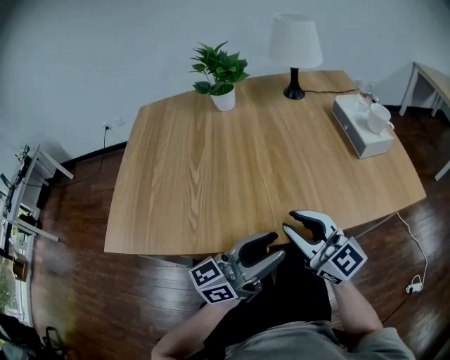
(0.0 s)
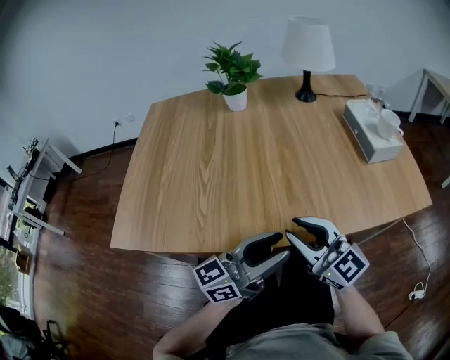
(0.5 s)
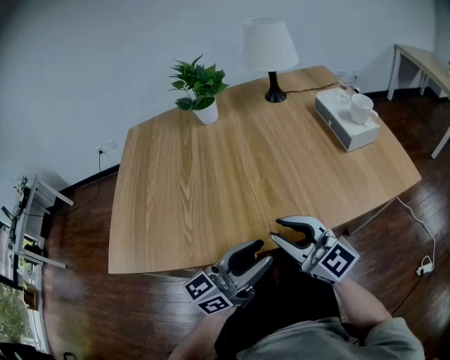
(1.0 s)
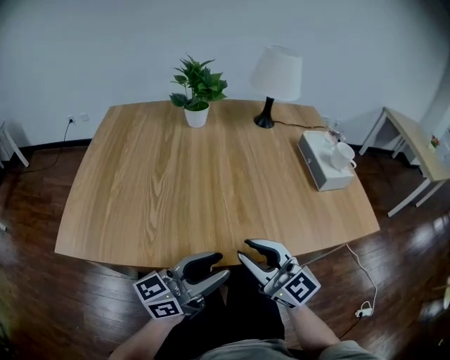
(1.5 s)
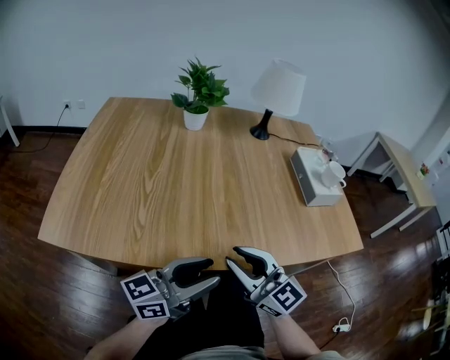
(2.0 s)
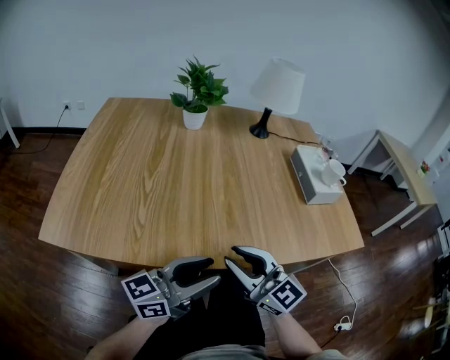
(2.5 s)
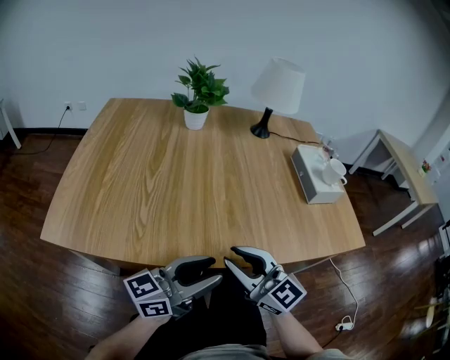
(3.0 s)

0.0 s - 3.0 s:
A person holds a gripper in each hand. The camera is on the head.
0.0 s - 3.0 s: There are only small adjustments of the grippers.

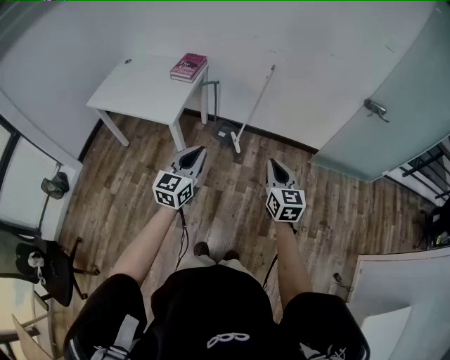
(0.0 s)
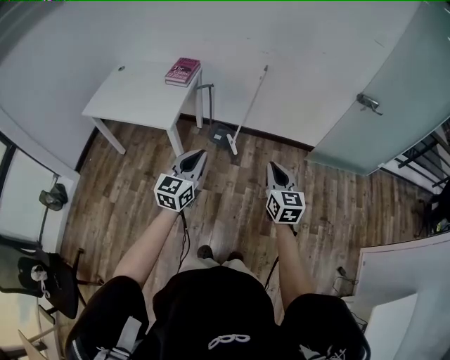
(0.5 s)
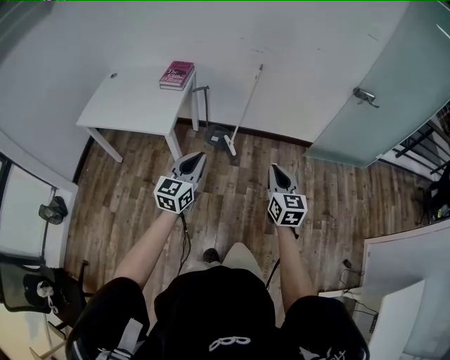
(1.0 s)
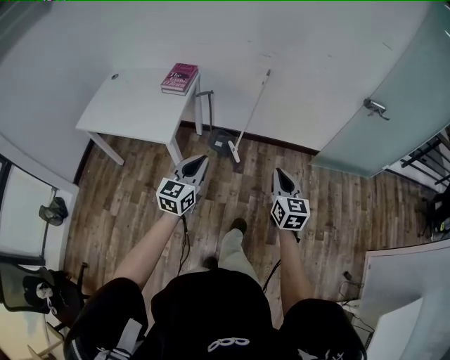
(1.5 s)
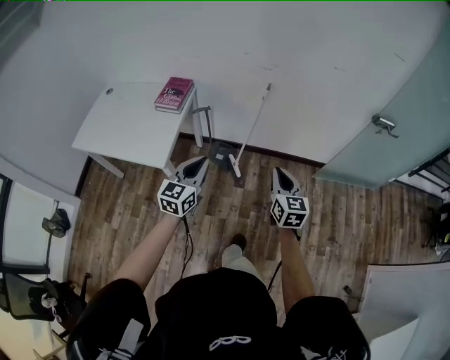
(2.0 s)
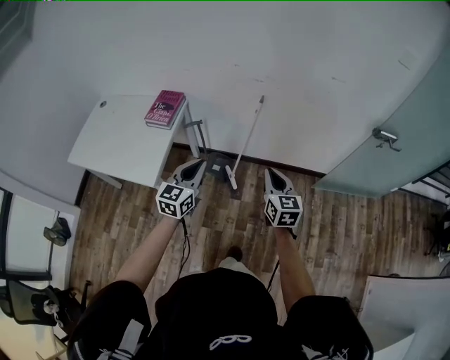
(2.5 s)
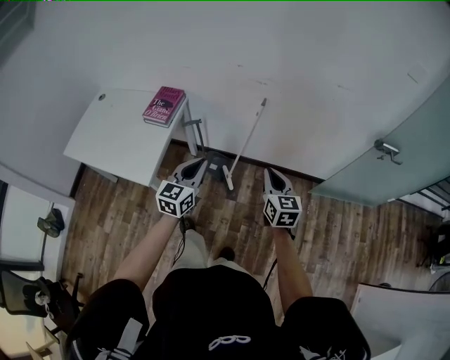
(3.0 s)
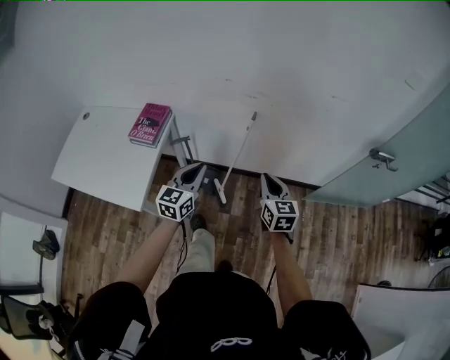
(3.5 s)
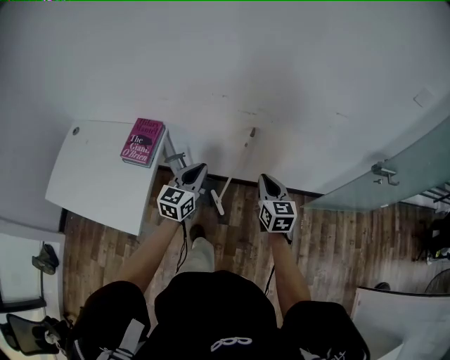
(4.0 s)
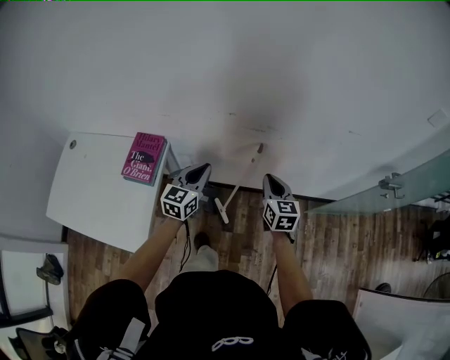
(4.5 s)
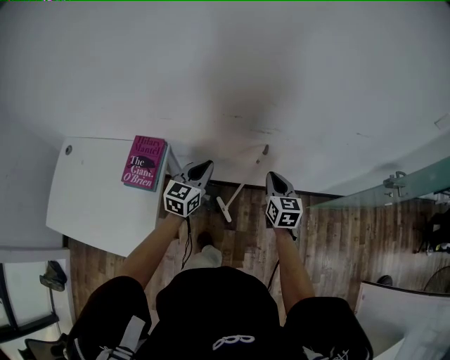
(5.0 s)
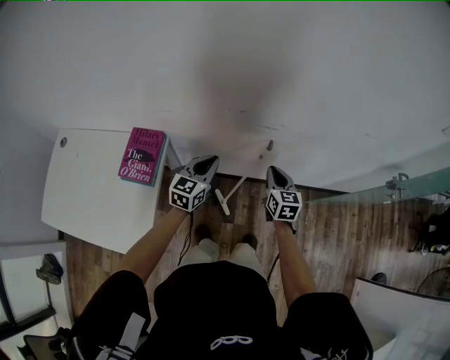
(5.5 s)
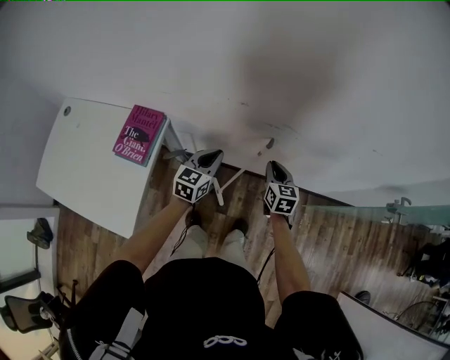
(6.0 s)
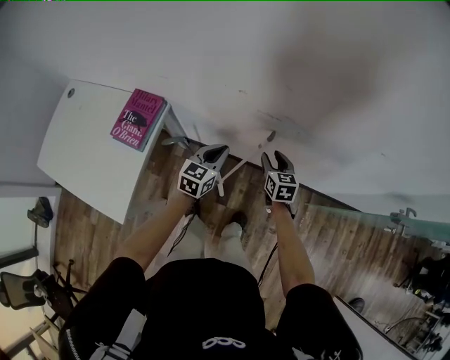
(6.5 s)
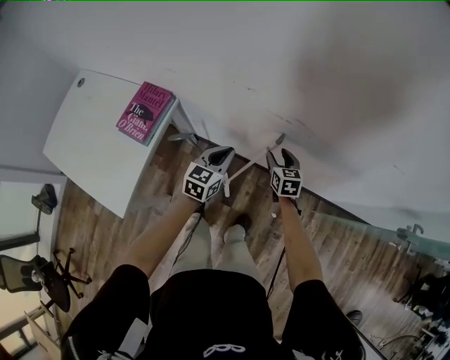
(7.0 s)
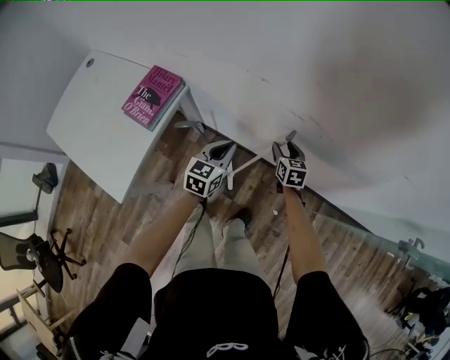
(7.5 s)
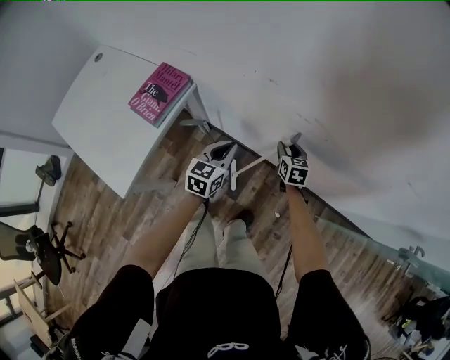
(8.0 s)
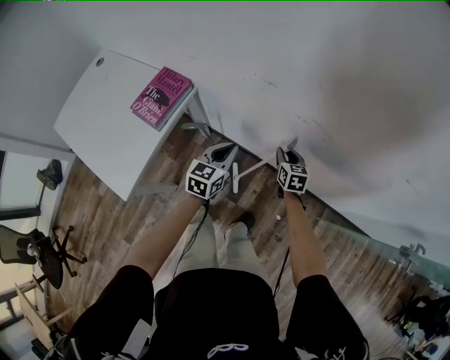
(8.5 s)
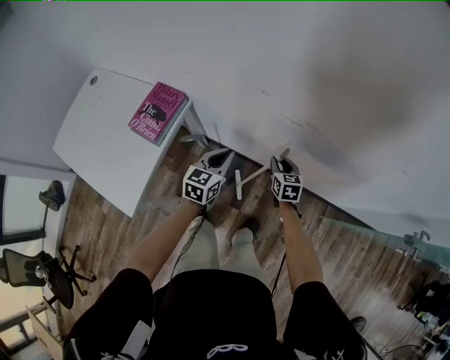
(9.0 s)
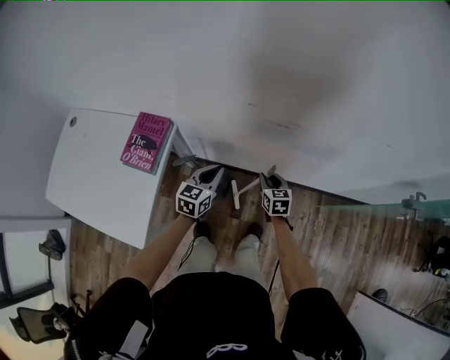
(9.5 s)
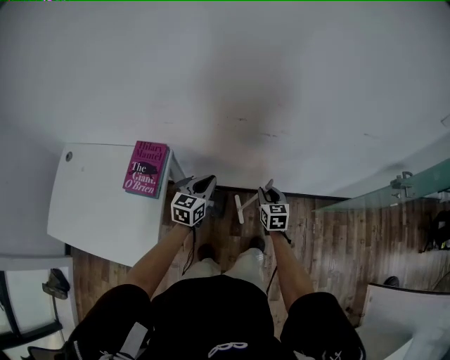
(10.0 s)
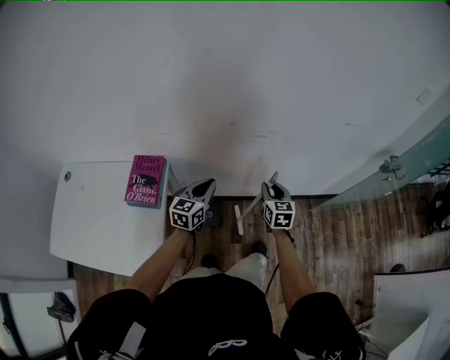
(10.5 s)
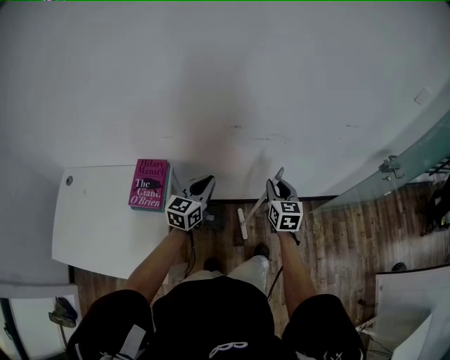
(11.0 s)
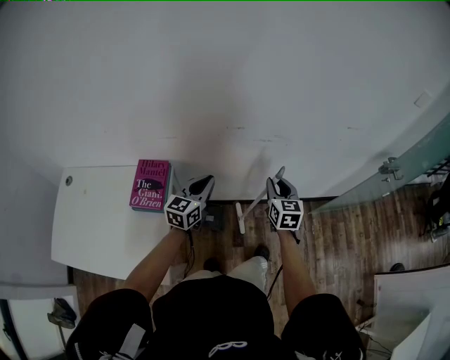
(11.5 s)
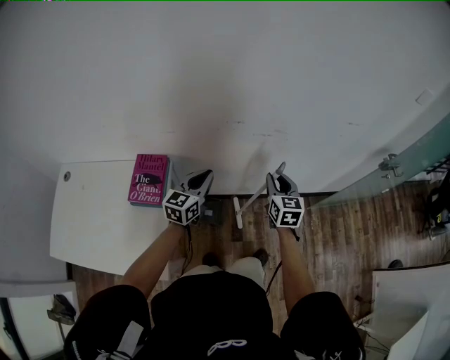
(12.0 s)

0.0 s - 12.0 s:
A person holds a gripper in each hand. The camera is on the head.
0.0 s - 2.0 s: The two grippers go about 20 cm forward.
2.0 s - 4.0 s: The two grippers go about 35 cm forward.
4.0 s - 6.0 s: Both grippers travel together forward and downward, roughly 20 cm.
6.0 s - 8.0 s: The left gripper heads downward, covering about 5 cm, while the right gripper moves downward and forward, approximately 15 cm, and opens up.
8.0 s - 10.0 s: The left gripper travels to the left and upward by some 10 cm, and turns by some 20 degrees, while the right gripper is displaced backward and upward by roughly 20 cm, and changes its angle by approximately 20 degrees.
10.0 s - 12.0 s: The right gripper travels upward by about 15 cm, while the left gripper moves upward, about 10 cm.

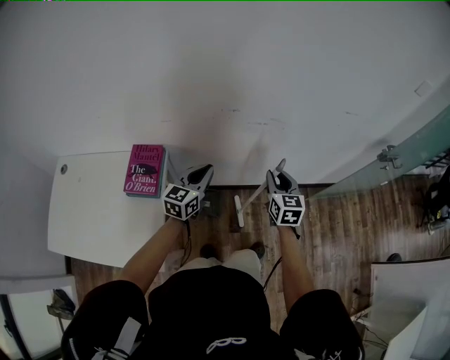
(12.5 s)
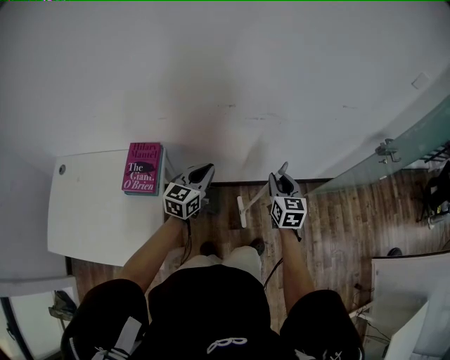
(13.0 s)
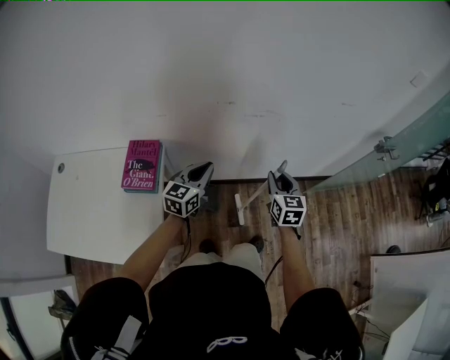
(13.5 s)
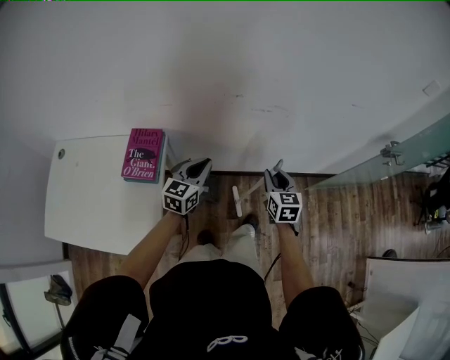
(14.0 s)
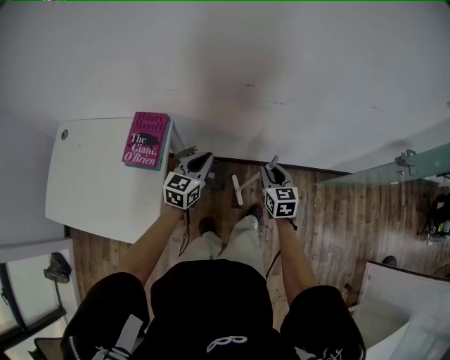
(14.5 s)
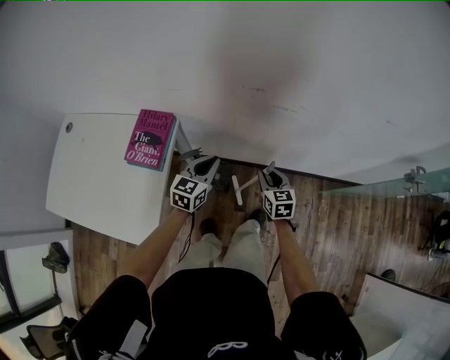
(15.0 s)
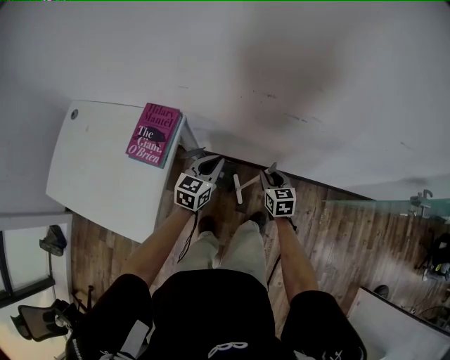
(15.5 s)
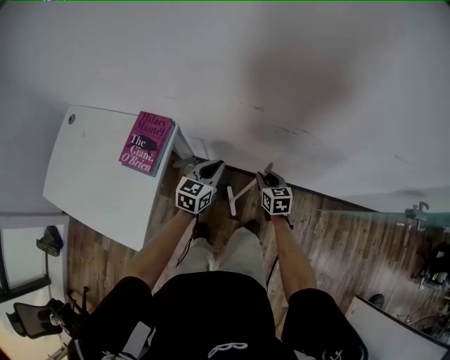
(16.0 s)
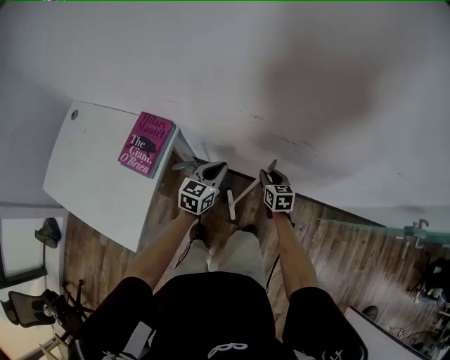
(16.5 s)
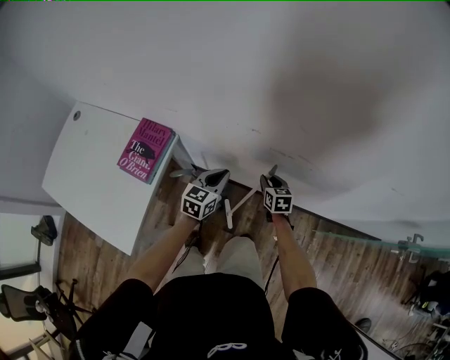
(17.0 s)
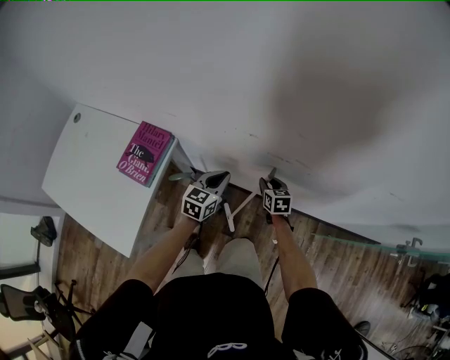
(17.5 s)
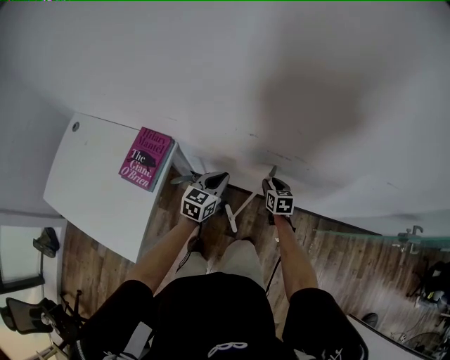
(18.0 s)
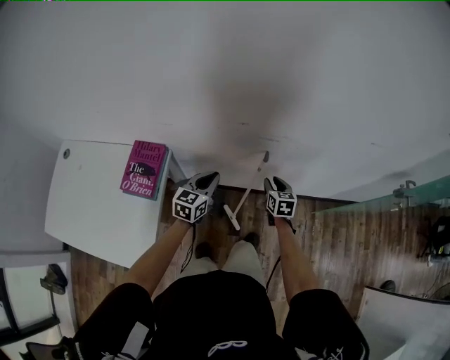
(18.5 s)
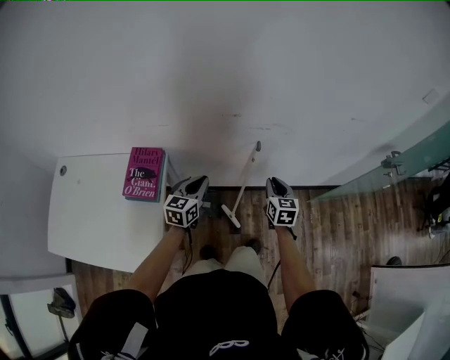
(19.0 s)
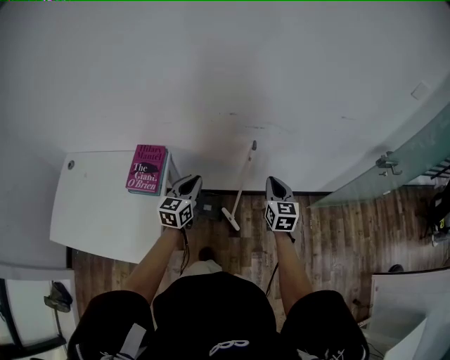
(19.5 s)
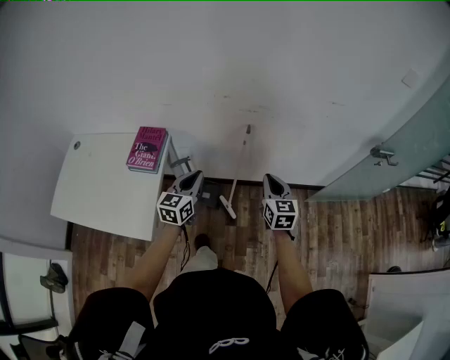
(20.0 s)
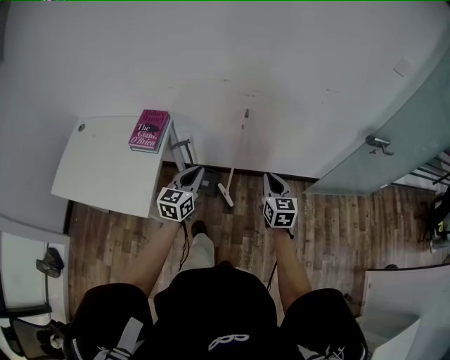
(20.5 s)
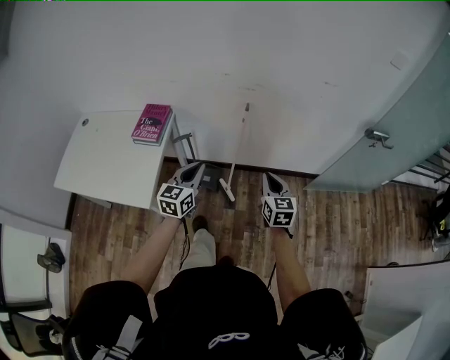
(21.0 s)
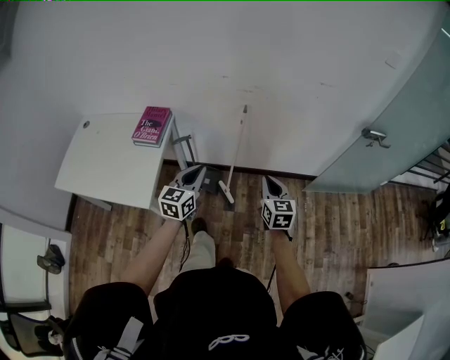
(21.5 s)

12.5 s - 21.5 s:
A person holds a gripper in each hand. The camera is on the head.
12.5 s - 14.5 s: The two grippers go approximately 10 cm downward.
14.5 s - 17.0 s: The right gripper travels forward and downward by about 25 cm, while the left gripper shifts roughly 15 cm forward, downward and to the right.
17.0 s - 19.5 s: The right gripper shifts some 30 cm upward and backward, changes its angle by roughly 30 degrees, and closes its fingers; the left gripper goes some 20 cm backward, upward and to the left.
19.5 s - 21.5 s: The right gripper travels backward by about 25 cm. The left gripper heads backward and to the right, covering roughly 25 cm.

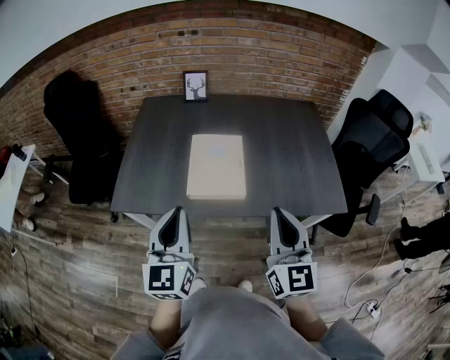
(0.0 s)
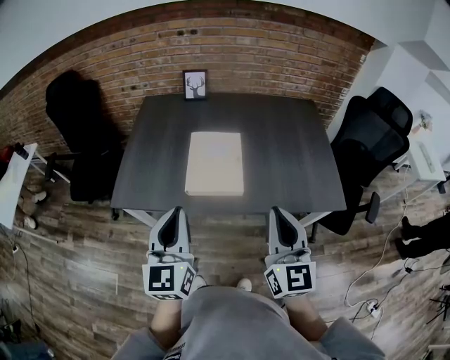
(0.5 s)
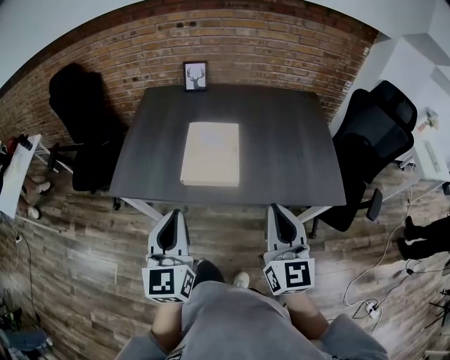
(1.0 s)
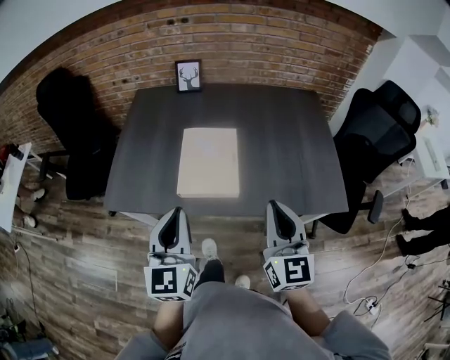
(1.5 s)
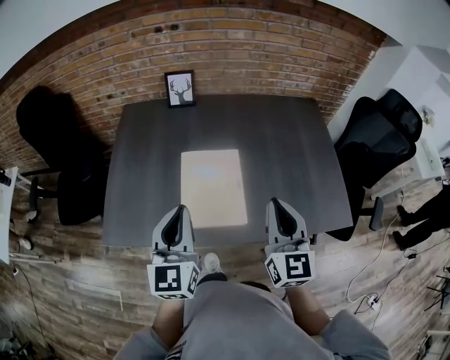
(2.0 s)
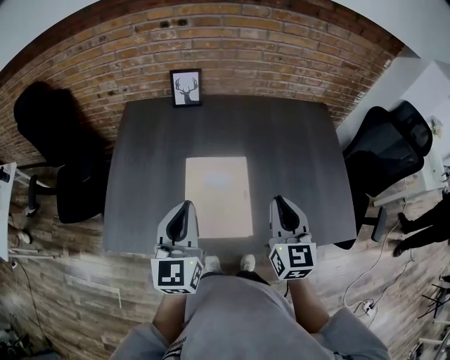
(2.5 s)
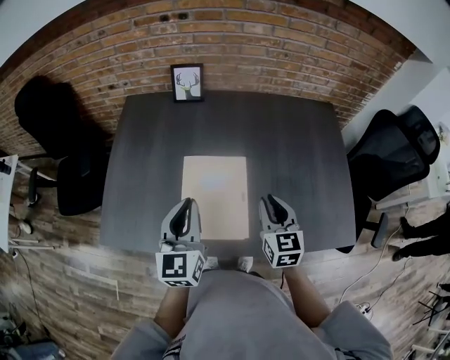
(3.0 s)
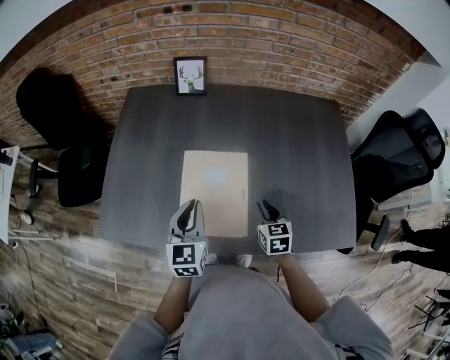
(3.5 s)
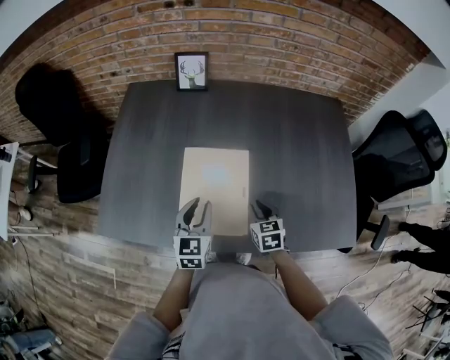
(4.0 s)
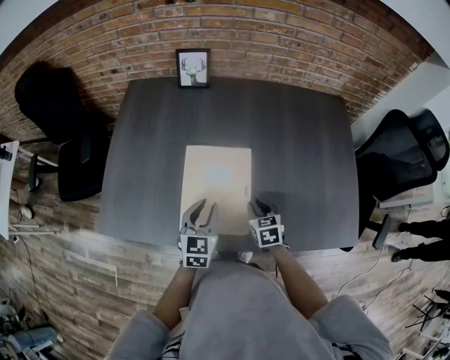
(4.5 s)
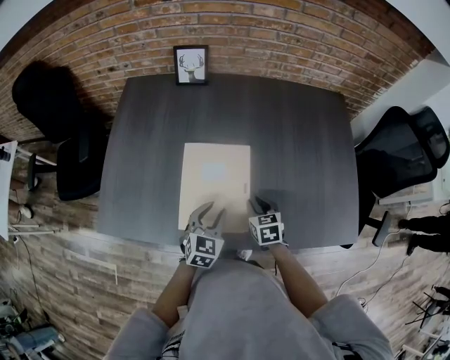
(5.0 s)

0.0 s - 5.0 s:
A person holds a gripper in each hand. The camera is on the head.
0.0 s - 2.5 s: The two grippers go roughly 25 cm forward.
2.5 s - 5.0 s: The right gripper shifts roughly 25 cm downward, and angles its fingers downward, by some 40 degrees. The left gripper heads downward and to the right, covering approximately 25 cm, swivels about 30 degrees, and opens its fingers.
